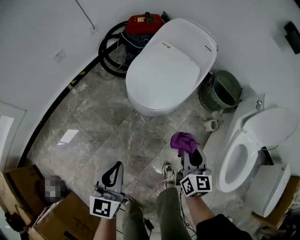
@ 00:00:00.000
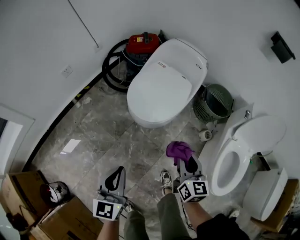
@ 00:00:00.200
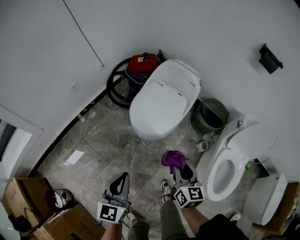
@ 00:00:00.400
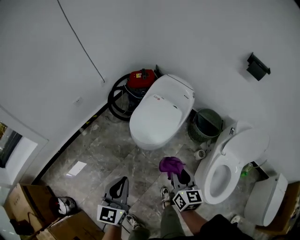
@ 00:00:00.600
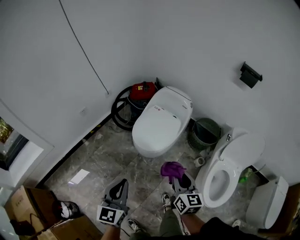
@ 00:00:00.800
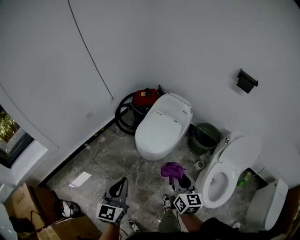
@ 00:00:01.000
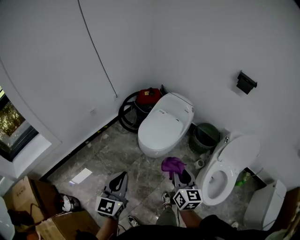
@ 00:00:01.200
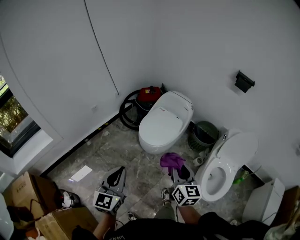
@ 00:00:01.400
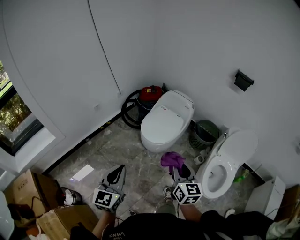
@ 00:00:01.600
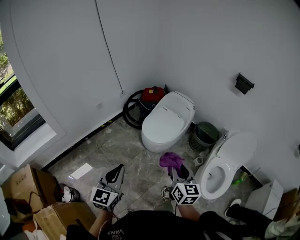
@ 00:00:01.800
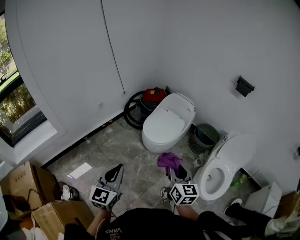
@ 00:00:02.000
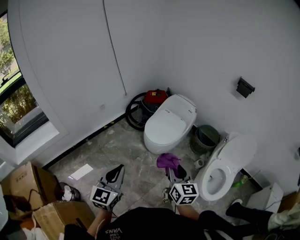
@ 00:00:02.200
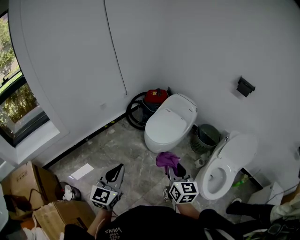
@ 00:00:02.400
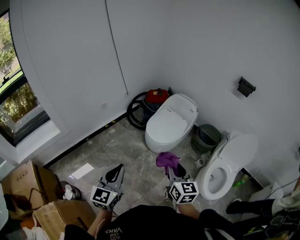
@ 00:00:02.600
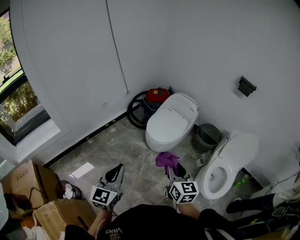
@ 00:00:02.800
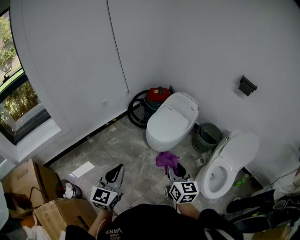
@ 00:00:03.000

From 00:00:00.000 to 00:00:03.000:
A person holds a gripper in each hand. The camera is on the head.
From 00:00:00.000 to 00:00:01.600: Both grippers travel together upward and backward, about 40 cm.
From 00:00:01.600 to 00:00:03.000: The left gripper is displaced backward by approximately 5 cm. Meanwhile the right gripper travels to the left by roughly 5 cm.

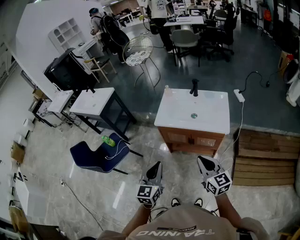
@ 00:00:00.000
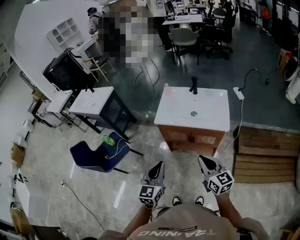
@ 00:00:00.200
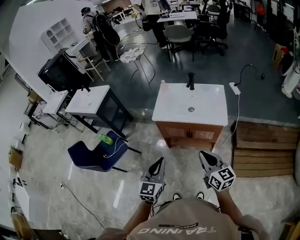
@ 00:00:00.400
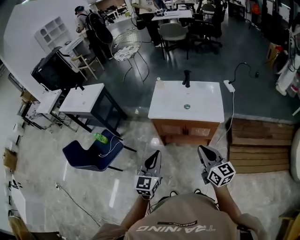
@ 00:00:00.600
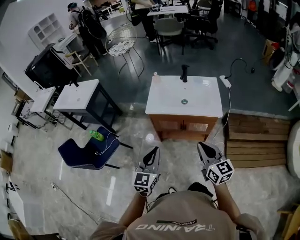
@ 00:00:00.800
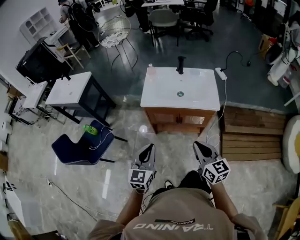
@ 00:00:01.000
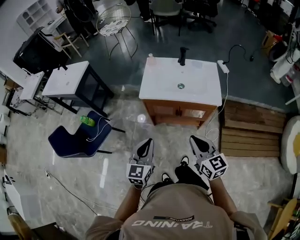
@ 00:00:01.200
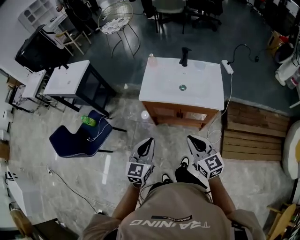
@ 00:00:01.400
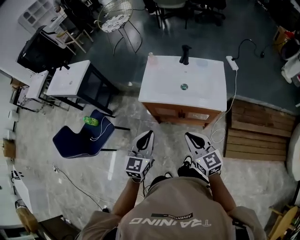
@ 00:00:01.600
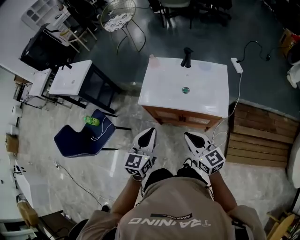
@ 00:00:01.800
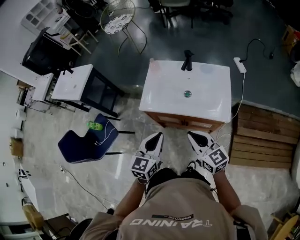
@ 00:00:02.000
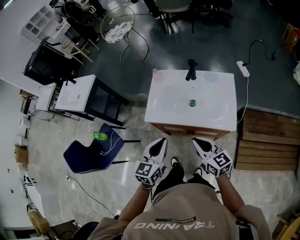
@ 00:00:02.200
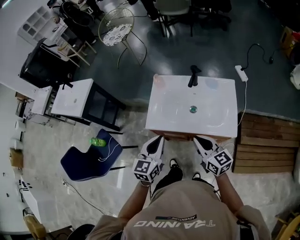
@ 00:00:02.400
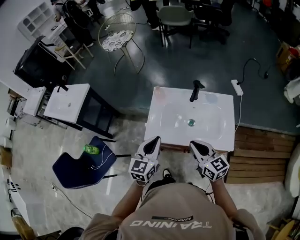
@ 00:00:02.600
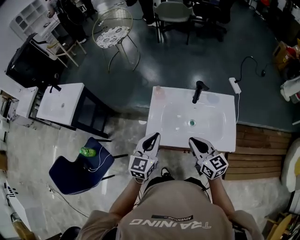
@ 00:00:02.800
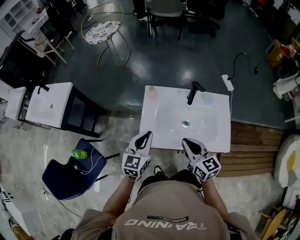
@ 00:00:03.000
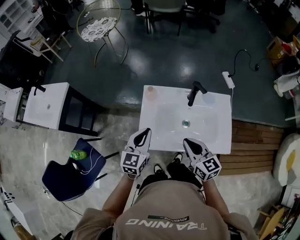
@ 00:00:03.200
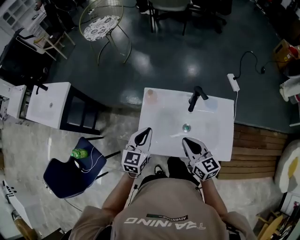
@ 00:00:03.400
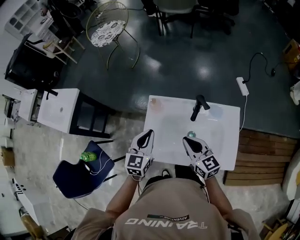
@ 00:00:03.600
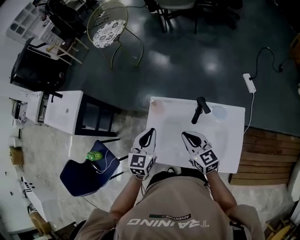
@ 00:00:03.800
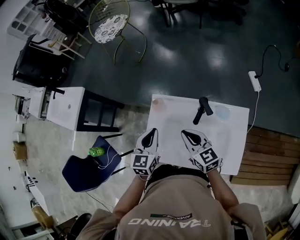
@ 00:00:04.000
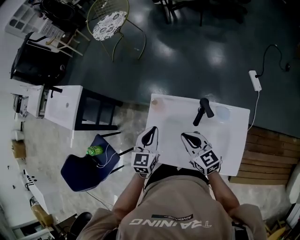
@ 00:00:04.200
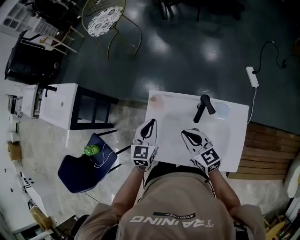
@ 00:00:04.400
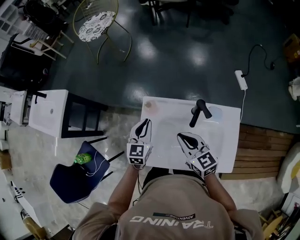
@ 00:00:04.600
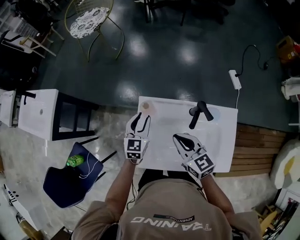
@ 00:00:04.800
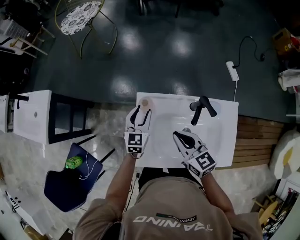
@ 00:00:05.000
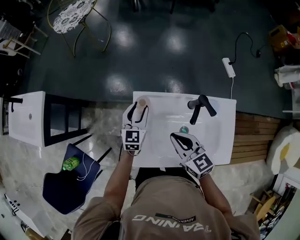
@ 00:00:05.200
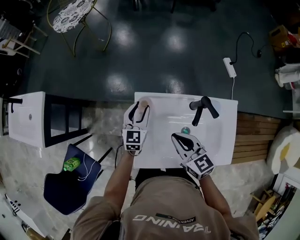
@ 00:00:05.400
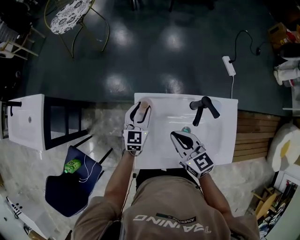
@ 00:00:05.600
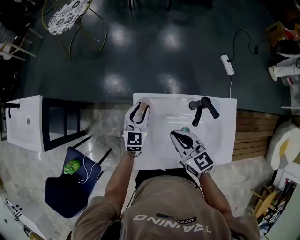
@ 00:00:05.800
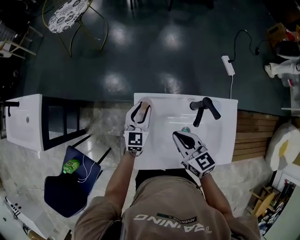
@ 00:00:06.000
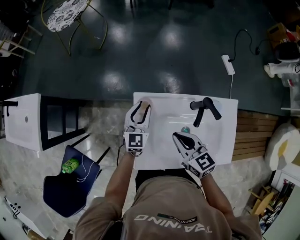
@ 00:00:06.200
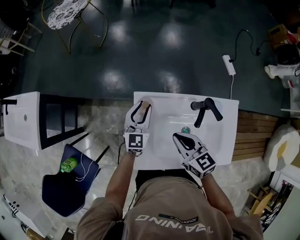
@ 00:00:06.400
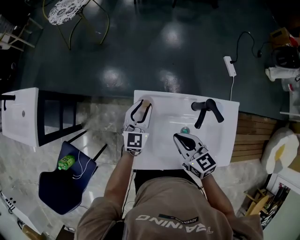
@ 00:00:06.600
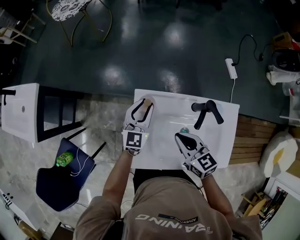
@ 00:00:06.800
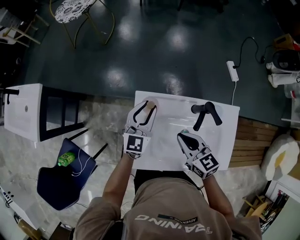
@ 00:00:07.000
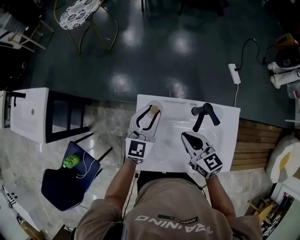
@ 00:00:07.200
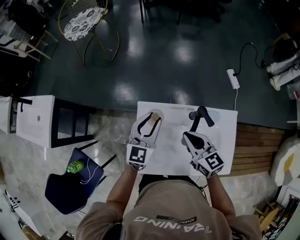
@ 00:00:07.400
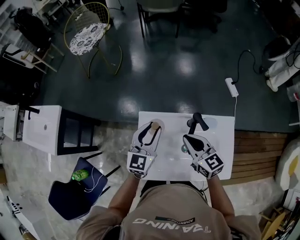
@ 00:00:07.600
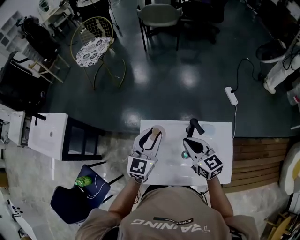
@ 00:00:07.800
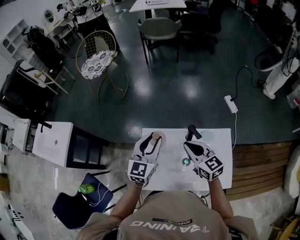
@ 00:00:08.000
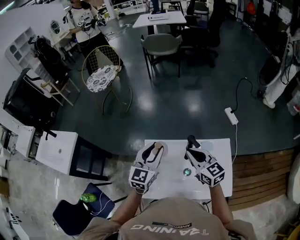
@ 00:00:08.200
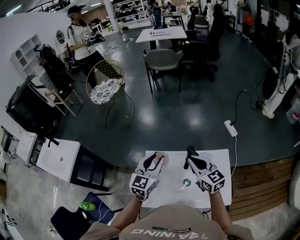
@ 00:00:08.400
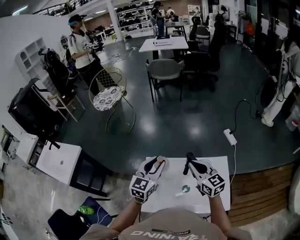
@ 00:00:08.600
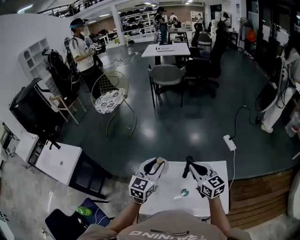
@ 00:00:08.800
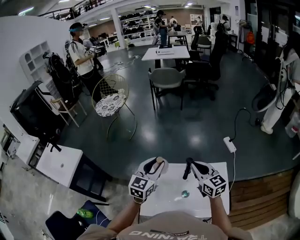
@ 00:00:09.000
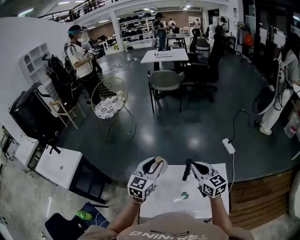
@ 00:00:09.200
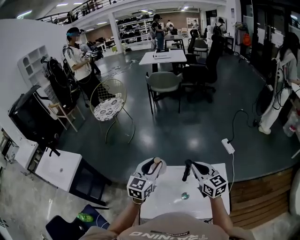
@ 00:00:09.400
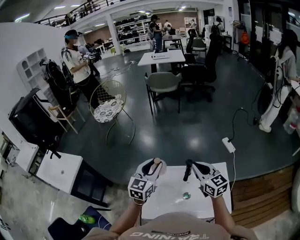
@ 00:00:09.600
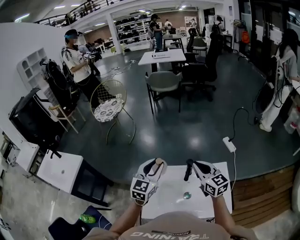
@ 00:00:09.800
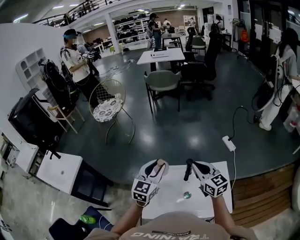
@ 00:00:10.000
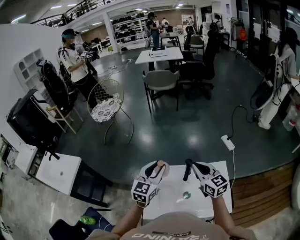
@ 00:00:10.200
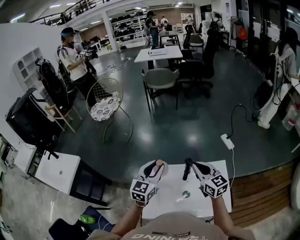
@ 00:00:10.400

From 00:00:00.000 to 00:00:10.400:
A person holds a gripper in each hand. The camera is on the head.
From 00:00:00.000 to 00:00:01.400: The left gripper moves forward, about 5 cm; the right gripper moves approximately 5 cm.
From 00:00:01.400 to 00:00:03.000: Both grippers move forward, approximately 35 cm.
From 00:00:03.000 to 00:00:04.400: Both grippers travel together forward, approximately 15 cm.
From 00:00:04.400 to 00:00:06.000: The right gripper changes place by about 5 cm; the left gripper goes roughly 15 cm forward and downward, and opens.
From 00:00:06.000 to 00:00:07.400: The left gripper goes roughly 10 cm upward, while the right gripper is displaced to the right by roughly 5 cm.
From 00:00:07.400 to 00:00:09.000: The left gripper is displaced upward by about 15 cm; the right gripper goes some 15 cm upward and to the right.
From 00:00:09.000 to 00:00:10.400: The grippers move only a little.

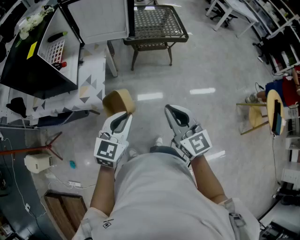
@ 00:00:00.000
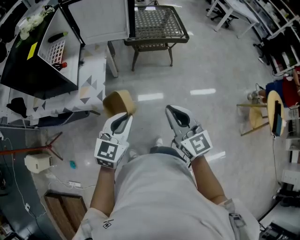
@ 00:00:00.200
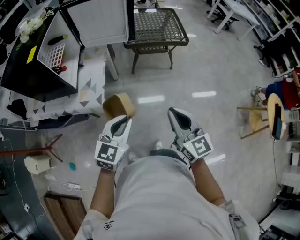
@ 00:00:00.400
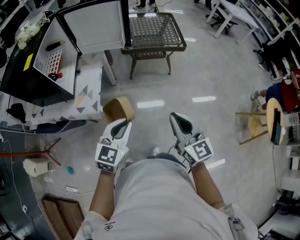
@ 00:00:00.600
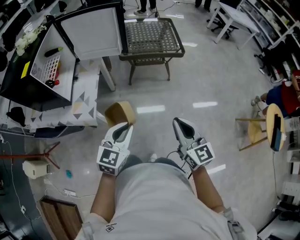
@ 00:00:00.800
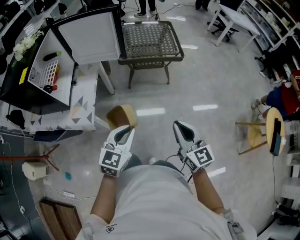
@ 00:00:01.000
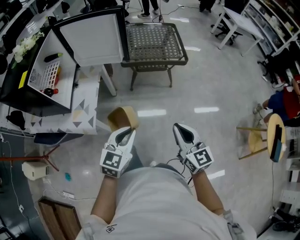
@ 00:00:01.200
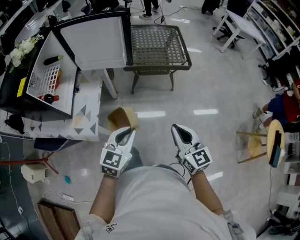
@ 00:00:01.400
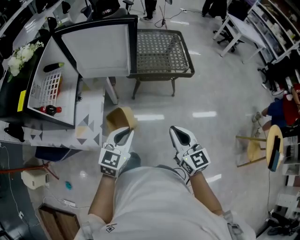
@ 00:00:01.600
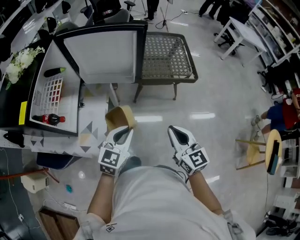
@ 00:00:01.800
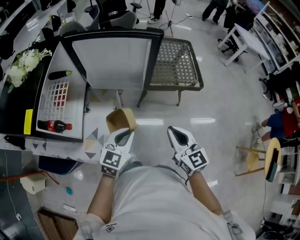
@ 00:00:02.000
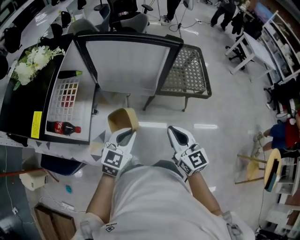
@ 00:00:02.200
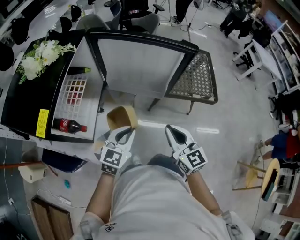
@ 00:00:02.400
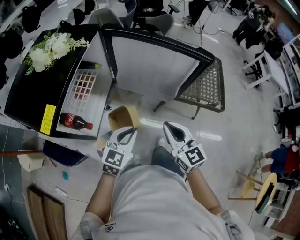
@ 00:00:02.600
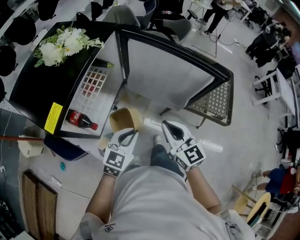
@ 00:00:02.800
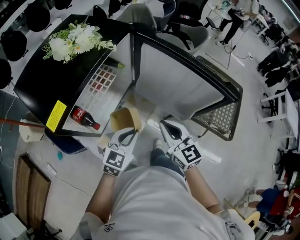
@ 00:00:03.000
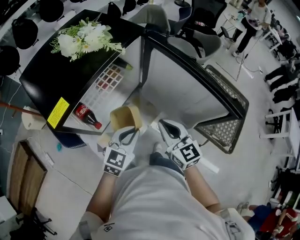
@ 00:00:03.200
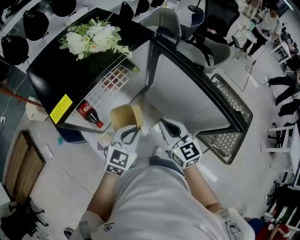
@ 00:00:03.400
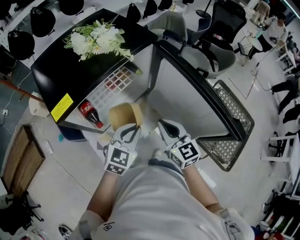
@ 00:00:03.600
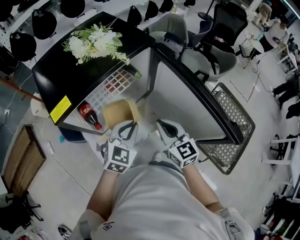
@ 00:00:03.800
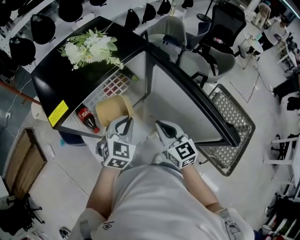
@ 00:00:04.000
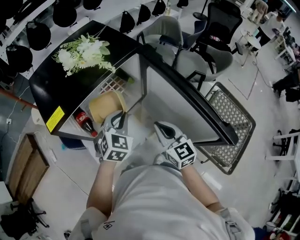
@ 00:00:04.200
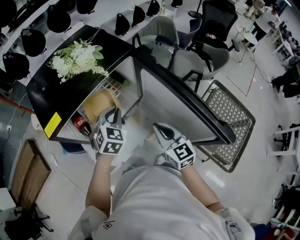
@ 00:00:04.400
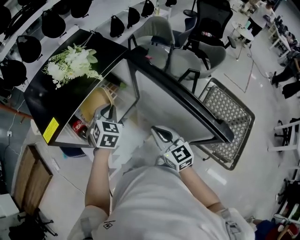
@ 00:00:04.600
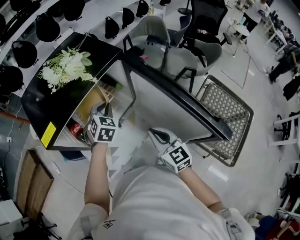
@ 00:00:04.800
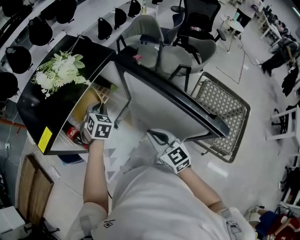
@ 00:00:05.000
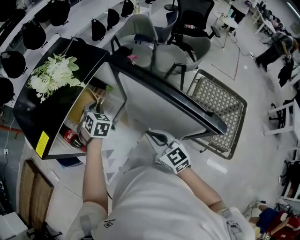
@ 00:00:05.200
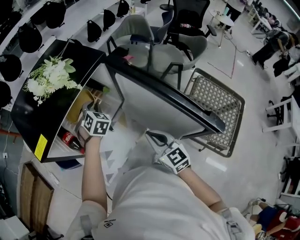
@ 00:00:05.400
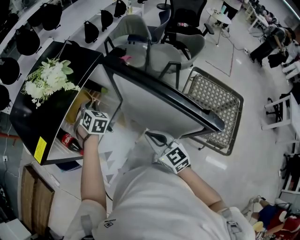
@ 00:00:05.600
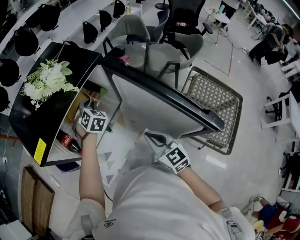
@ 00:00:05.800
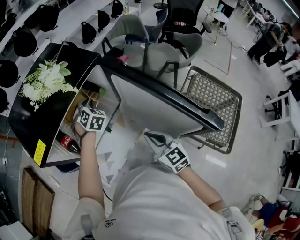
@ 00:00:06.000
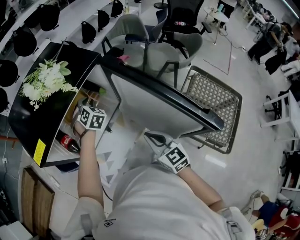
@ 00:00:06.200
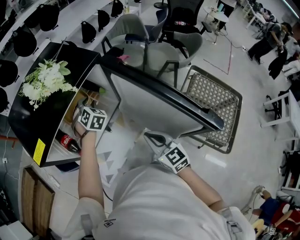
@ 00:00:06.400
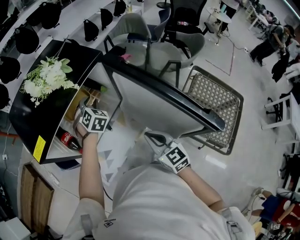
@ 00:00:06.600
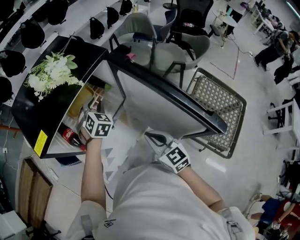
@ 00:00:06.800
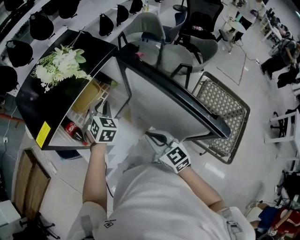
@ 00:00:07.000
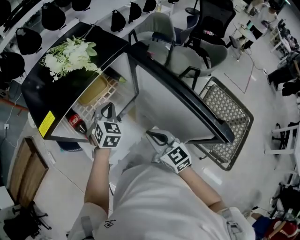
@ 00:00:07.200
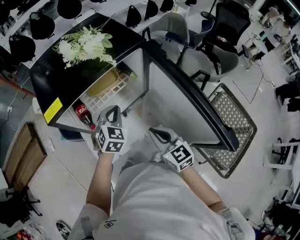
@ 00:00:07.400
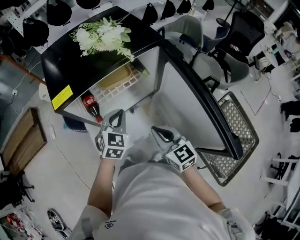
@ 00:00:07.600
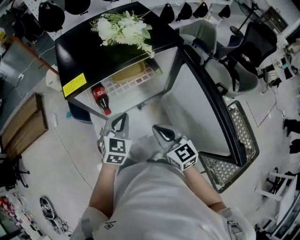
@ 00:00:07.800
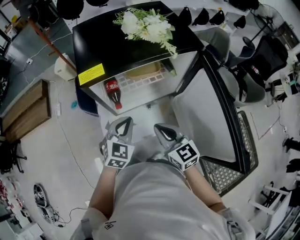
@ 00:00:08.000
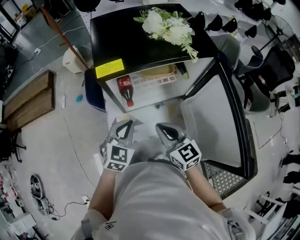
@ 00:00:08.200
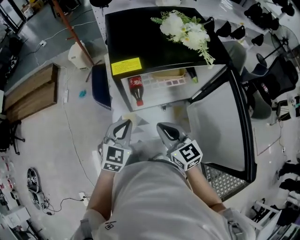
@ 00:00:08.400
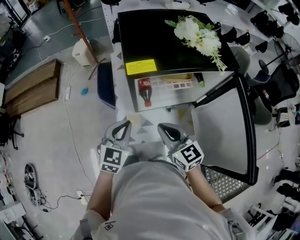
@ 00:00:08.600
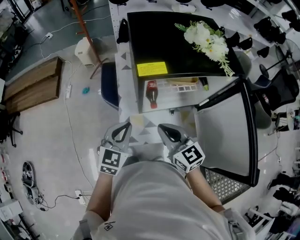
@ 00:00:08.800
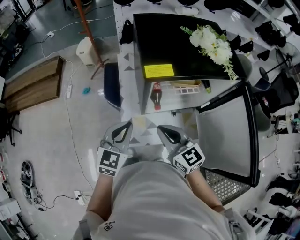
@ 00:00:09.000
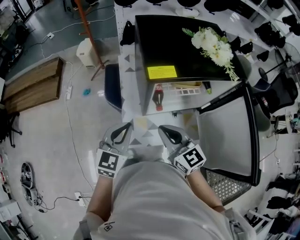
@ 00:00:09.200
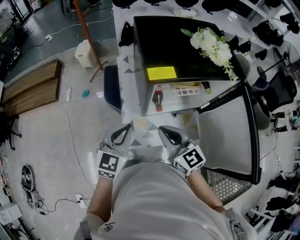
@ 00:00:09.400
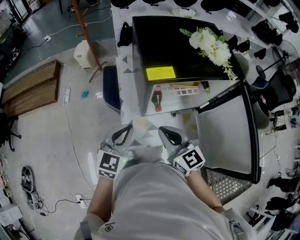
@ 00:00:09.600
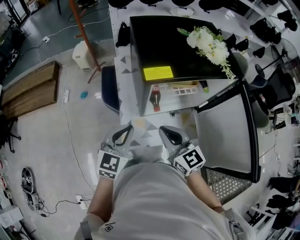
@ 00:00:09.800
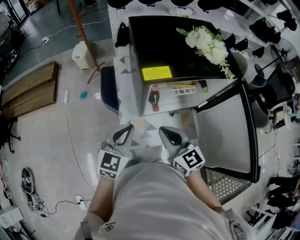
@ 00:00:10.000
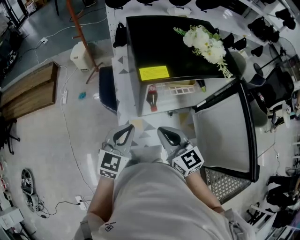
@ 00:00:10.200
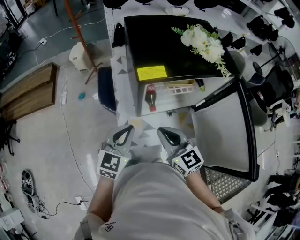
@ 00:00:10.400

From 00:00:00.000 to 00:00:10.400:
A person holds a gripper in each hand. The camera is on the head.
From 00:00:00.000 to 00:00:01.400: The right gripper travels forward and to the right by some 20 cm. Meanwhile the left gripper moves forward, roughly 15 cm.
From 00:00:01.400 to 00:00:03.000: The right gripper ends up some 50 cm from where it was, and changes its angle by some 40 degrees. The left gripper changes place by roughly 35 cm, and changes its angle by about 30 degrees.
From 00:00:03.000 to 00:00:04.400: The right gripper moves approximately 10 cm, while the left gripper moves approximately 15 cm, and turns by roughly 40 degrees.
From 00:00:04.400 to 00:00:06.000: The left gripper is displaced forward and downward by some 15 cm.
From 00:00:06.000 to 00:00:07.400: The left gripper goes some 15 cm backward.
From 00:00:07.400 to 00:00:09.000: Both grippers move to the left, roughly 25 cm. The right gripper swivels about 30 degrees, while the left gripper rotates roughly 30 degrees.
From 00:00:09.000 to 00:00:10.400: The grippers make only small movements.
